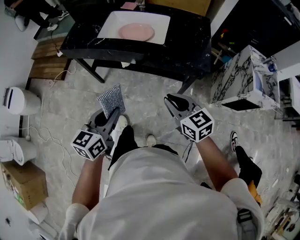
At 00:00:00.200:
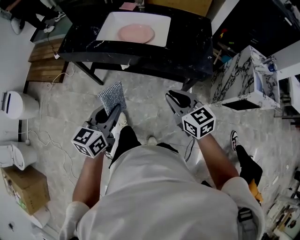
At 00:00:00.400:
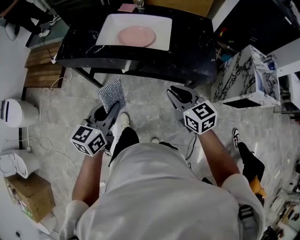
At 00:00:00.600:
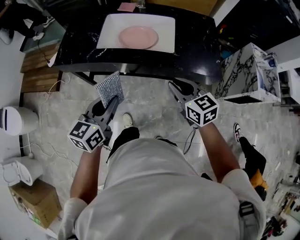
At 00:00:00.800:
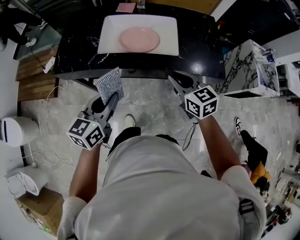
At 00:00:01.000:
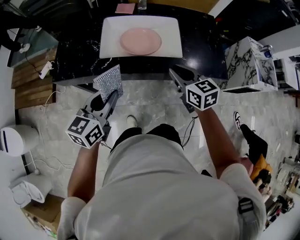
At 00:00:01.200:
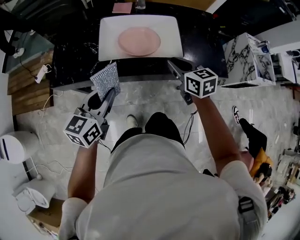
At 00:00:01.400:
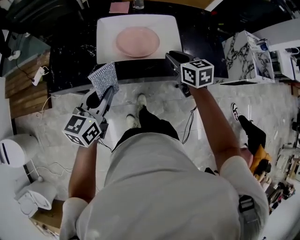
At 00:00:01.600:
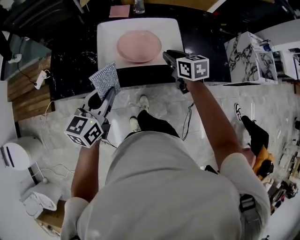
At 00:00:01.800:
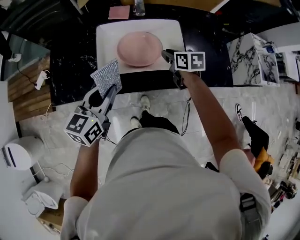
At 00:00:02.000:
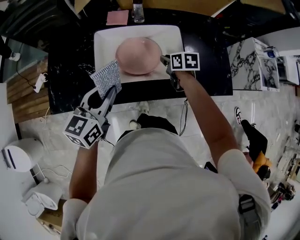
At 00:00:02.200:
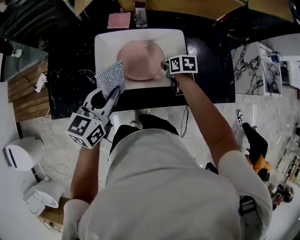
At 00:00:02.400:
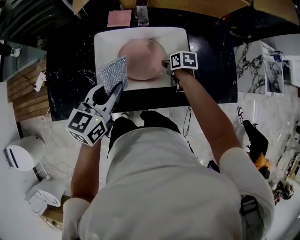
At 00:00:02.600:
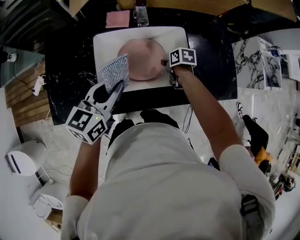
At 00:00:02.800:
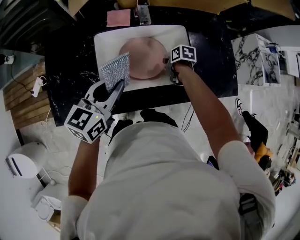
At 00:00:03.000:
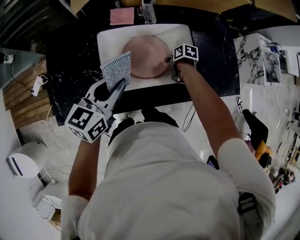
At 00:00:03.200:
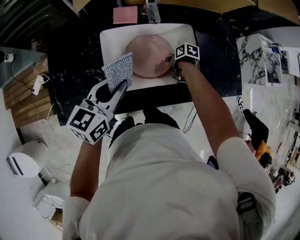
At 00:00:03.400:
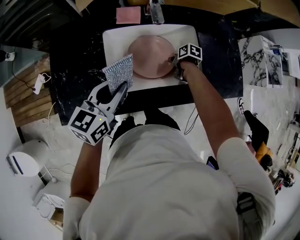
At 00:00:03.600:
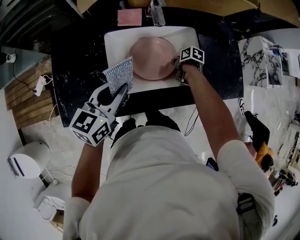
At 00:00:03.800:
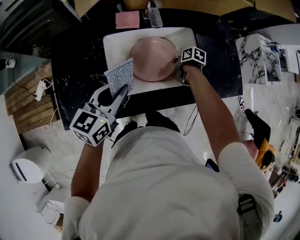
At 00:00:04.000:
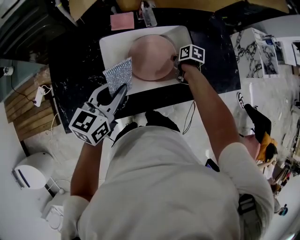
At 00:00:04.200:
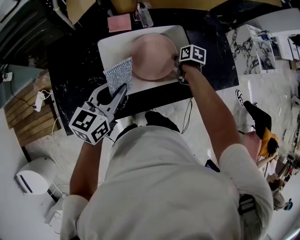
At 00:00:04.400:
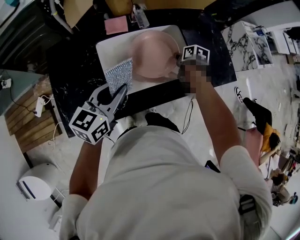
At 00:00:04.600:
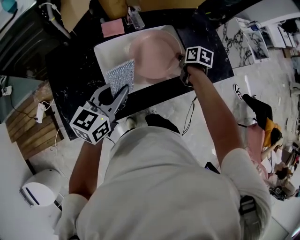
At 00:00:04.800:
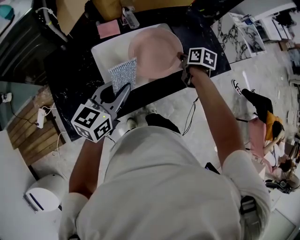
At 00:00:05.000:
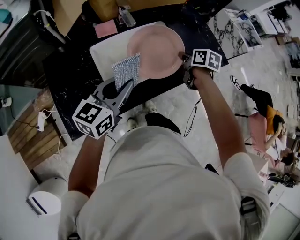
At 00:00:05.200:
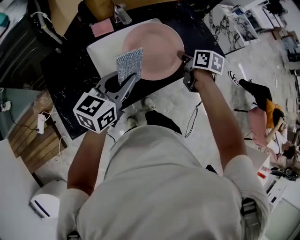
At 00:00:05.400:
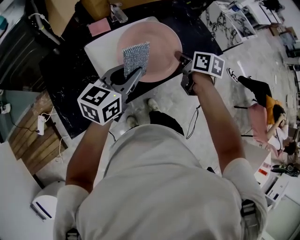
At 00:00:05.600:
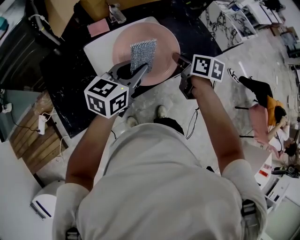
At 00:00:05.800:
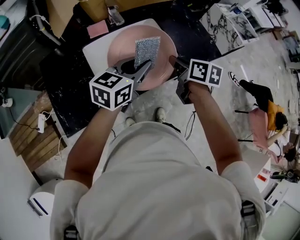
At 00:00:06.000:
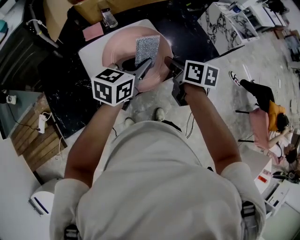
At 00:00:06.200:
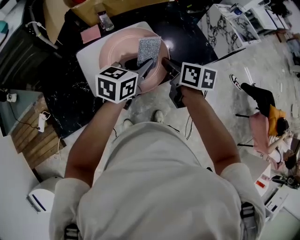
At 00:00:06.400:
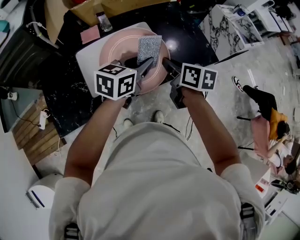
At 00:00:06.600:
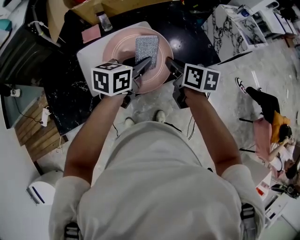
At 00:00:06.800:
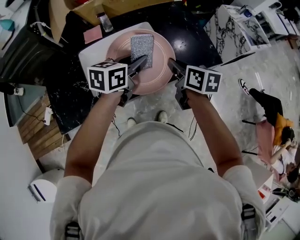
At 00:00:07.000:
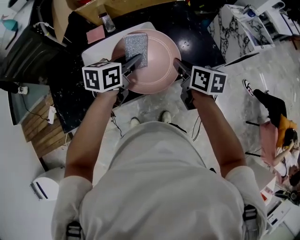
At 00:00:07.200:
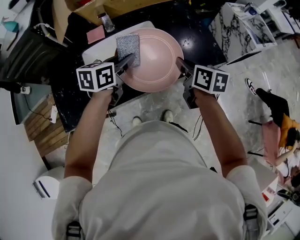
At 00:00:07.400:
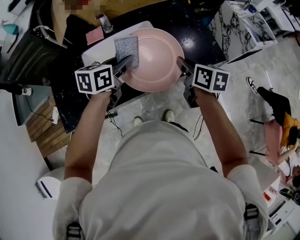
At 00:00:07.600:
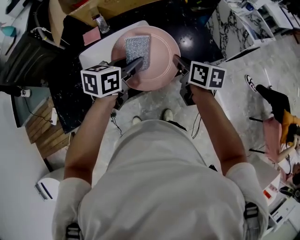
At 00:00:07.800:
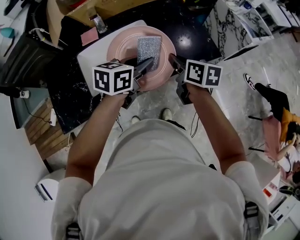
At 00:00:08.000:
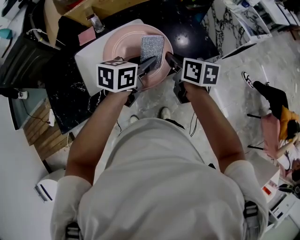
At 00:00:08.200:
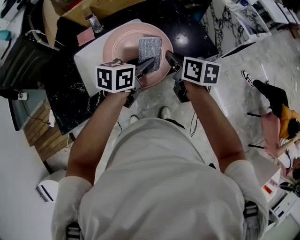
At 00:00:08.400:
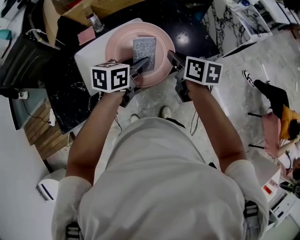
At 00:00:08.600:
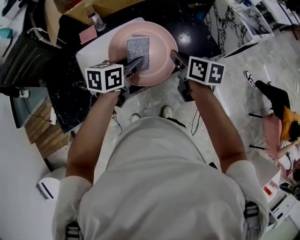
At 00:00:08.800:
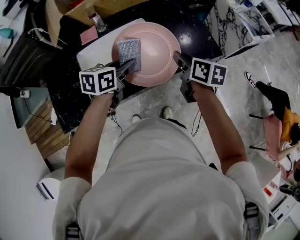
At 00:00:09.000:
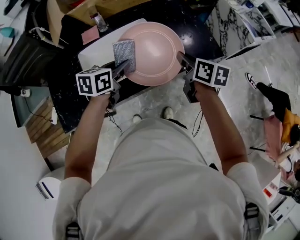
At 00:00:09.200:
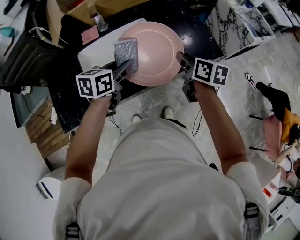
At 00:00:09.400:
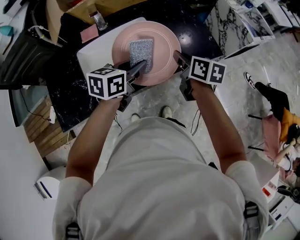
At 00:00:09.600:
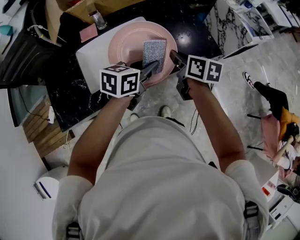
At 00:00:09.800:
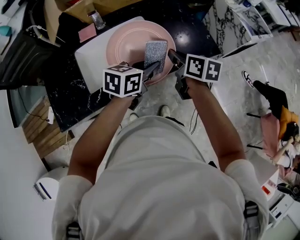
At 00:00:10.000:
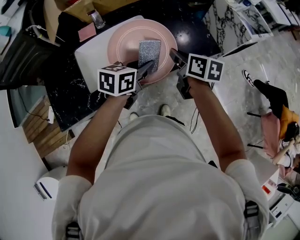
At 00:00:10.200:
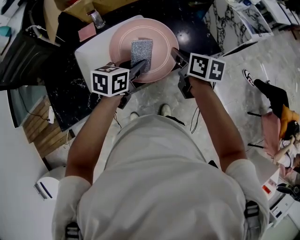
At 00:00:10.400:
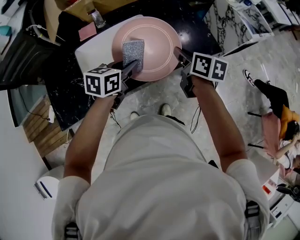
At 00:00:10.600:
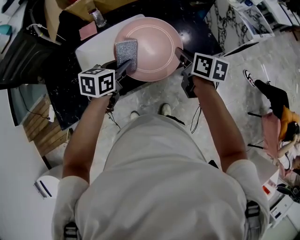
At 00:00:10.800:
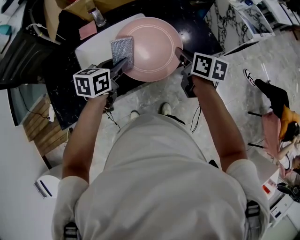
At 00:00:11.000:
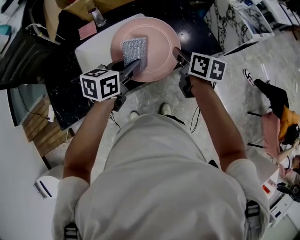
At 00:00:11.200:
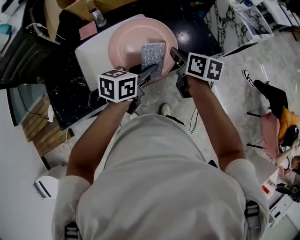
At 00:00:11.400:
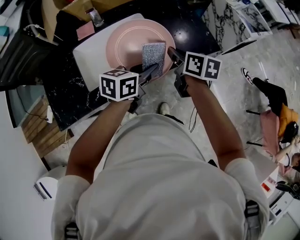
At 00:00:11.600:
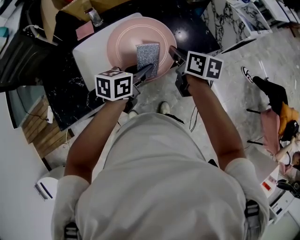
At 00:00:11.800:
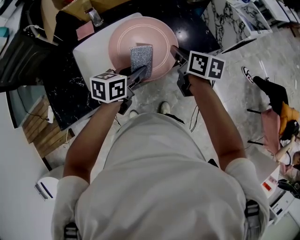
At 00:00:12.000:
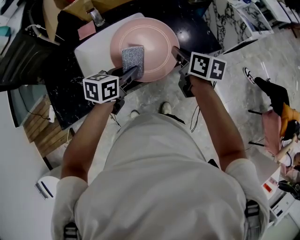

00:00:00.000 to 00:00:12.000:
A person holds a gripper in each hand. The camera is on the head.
00:00:00.000 to 00:00:01.600: The left gripper heads forward and to the left, covering roughly 40 cm, while the right gripper travels forward by some 40 cm, and changes its angle by some 30 degrees.
00:00:01.600 to 00:00:03.000: The right gripper is displaced downward and forward by approximately 25 cm, and turns by about 50 degrees. The left gripper goes roughly 15 cm forward.
00:00:03.000 to 00:00:04.400: The right gripper travels upward by approximately 10 cm, and swivels about 20 degrees.
00:00:04.400 to 00:00:06.000: The right gripper heads upward and backward, covering about 25 cm, and rotates about 20 degrees, while the left gripper moves to the right, some 15 cm.
00:00:06.000 to 00:00:07.600: The right gripper travels to the right by about 10 cm, while the left gripper swings left and right, some 5 cm each way, with 2 reversals.
00:00:07.600 to 00:00:09.000: The left gripper ends up about 5 cm from where it was.
00:00:09.000 to 00:00:10.400: The left gripper reaches about 10 cm to the right, then returns.
00:00:10.400 to 00:00:12.000: The left gripper moves left and right over approximately 10 cm, changing direction 2 times.

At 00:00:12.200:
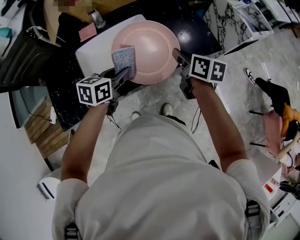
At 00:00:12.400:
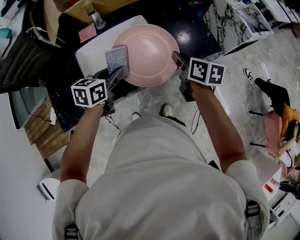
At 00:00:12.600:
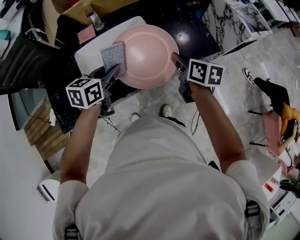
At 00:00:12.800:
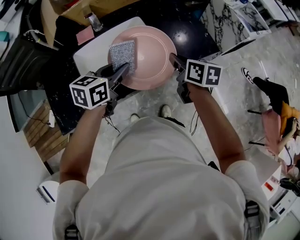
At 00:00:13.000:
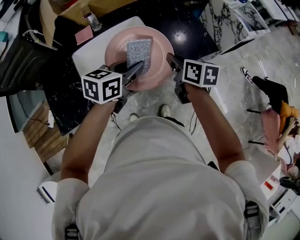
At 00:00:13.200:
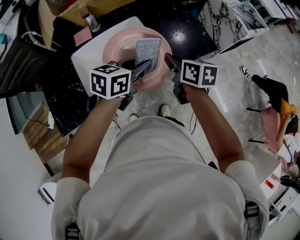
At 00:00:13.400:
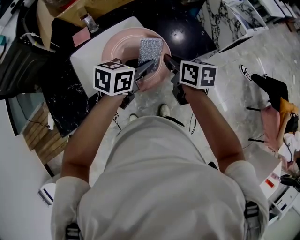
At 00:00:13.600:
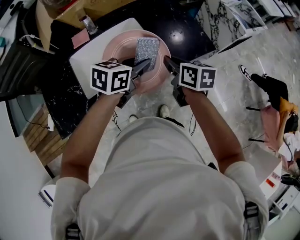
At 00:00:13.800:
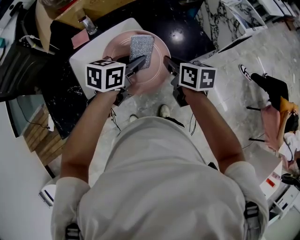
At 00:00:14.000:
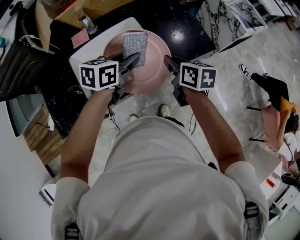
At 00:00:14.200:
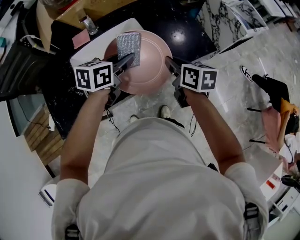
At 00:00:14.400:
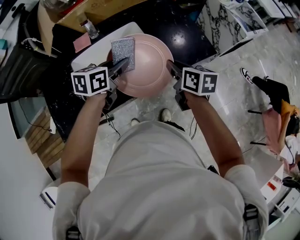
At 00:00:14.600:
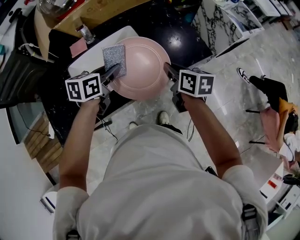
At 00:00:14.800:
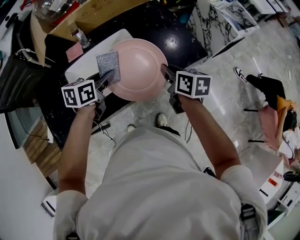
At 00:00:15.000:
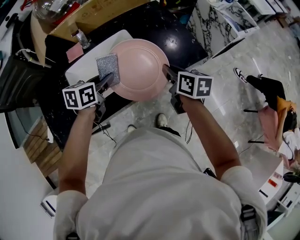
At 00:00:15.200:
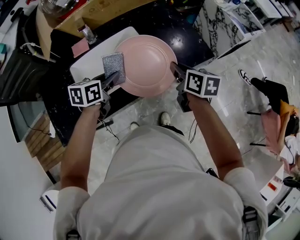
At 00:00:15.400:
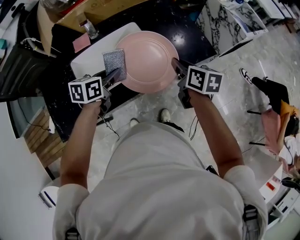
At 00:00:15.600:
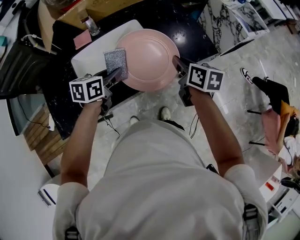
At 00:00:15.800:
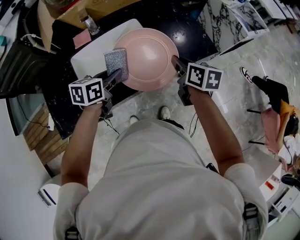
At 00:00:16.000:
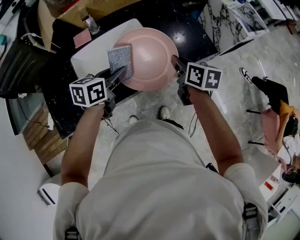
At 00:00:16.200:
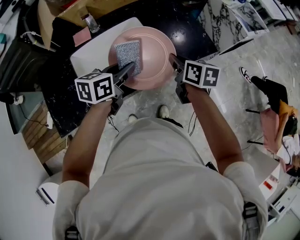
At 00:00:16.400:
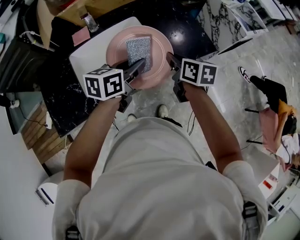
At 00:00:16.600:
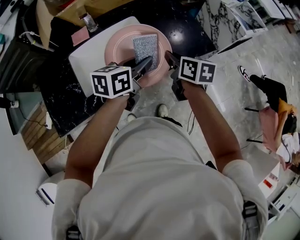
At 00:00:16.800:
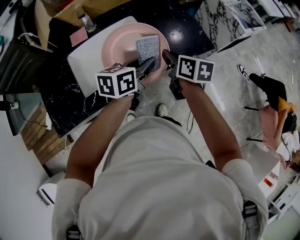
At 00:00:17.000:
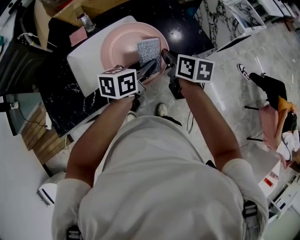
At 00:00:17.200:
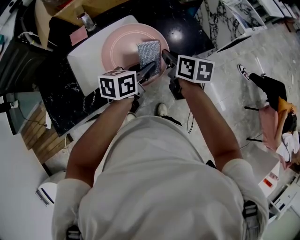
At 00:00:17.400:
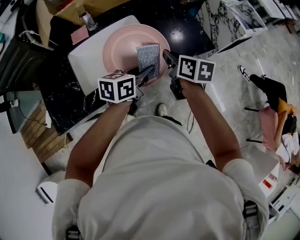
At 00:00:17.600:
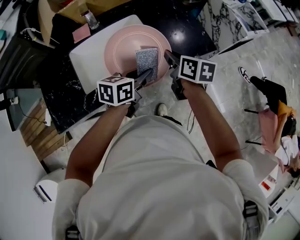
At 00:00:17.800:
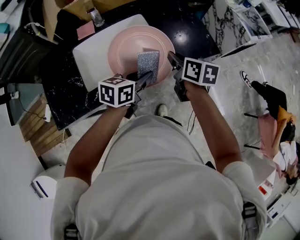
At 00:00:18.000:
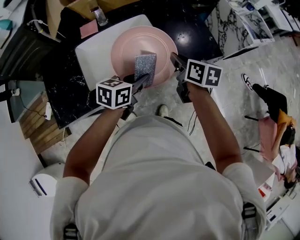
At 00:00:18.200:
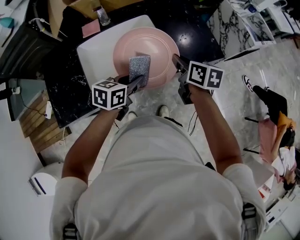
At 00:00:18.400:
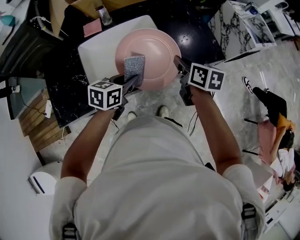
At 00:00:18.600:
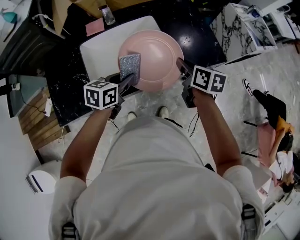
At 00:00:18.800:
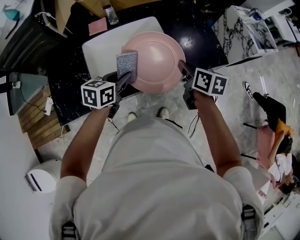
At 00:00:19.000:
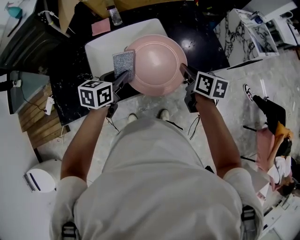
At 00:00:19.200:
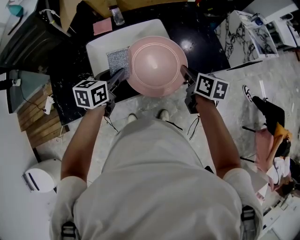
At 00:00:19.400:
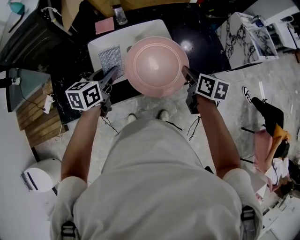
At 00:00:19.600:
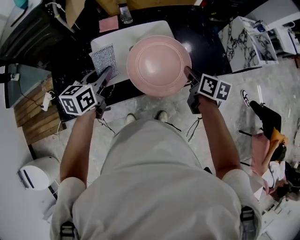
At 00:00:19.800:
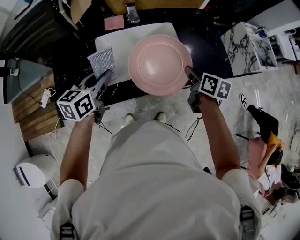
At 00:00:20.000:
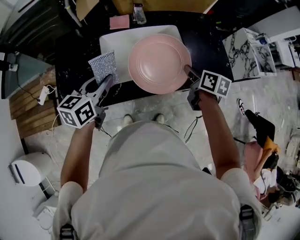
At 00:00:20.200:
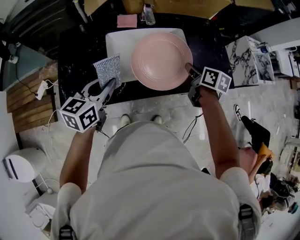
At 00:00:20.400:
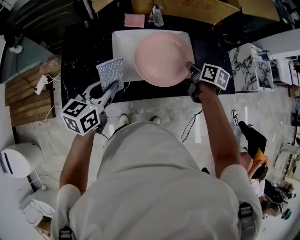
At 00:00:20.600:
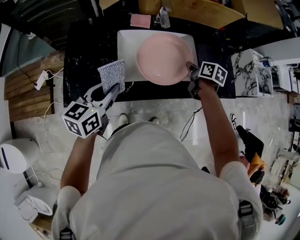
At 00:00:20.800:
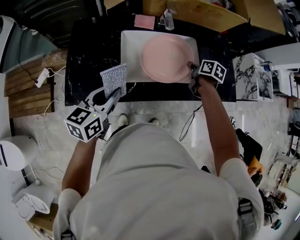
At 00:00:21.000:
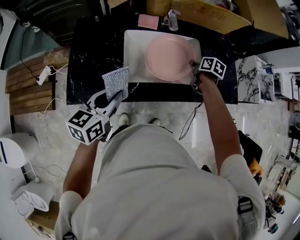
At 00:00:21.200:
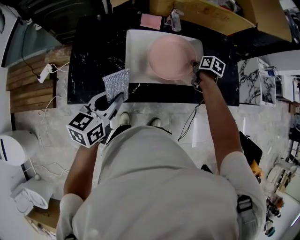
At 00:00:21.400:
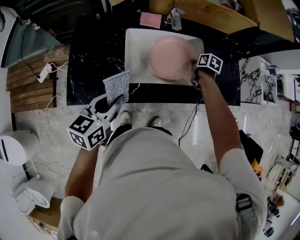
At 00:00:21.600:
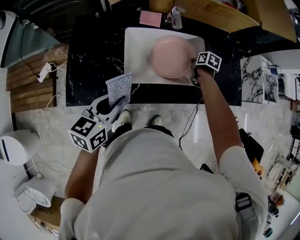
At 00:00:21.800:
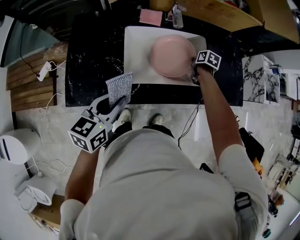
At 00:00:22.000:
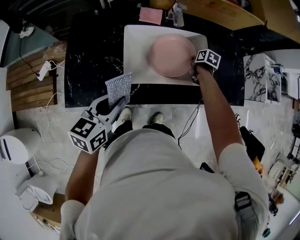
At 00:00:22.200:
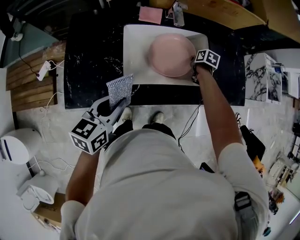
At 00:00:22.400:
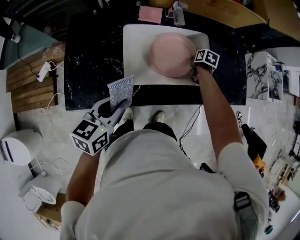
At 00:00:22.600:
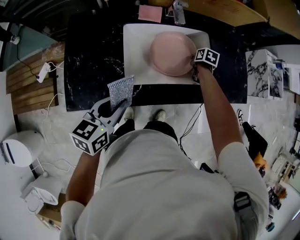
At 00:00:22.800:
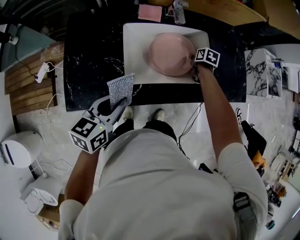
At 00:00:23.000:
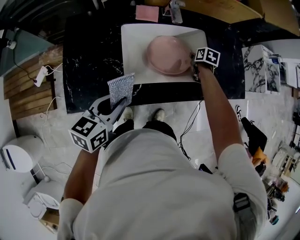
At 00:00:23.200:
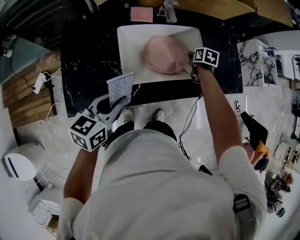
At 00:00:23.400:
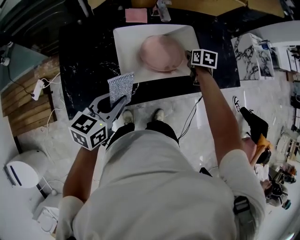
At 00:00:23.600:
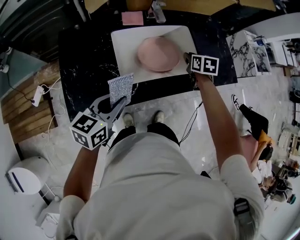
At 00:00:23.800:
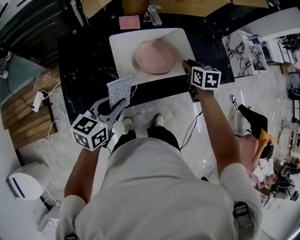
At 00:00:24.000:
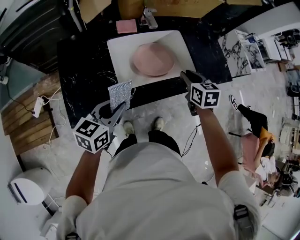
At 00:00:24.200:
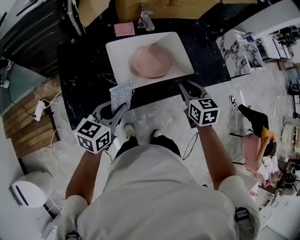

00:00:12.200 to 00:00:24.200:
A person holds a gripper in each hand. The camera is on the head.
00:00:12.200 to 00:00:13.800: The left gripper shifts approximately 10 cm to the right and forward.
00:00:13.800 to 00:00:15.200: The left gripper heads to the left, covering approximately 10 cm.
00:00:15.200 to 00:00:16.600: The left gripper moves to the right, some 10 cm.
00:00:16.600 to 00:00:18.200: The left gripper heads downward, backward and to the left, covering some 10 cm.
00:00:18.200 to 00:00:19.800: The left gripper travels to the left by about 20 cm, and rotates some 30 degrees.
00:00:19.800 to 00:00:21.200: The left gripper goes approximately 10 cm backward and to the left, while the right gripper goes some 20 cm forward, downward and to the left.
00:00:21.200 to 00:00:22.600: The right gripper travels downward by some 10 cm.
00:00:22.600 to 00:00:24.200: The right gripper travels backward and upward by about 35 cm, and swivels about 30 degrees.
